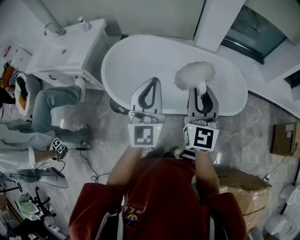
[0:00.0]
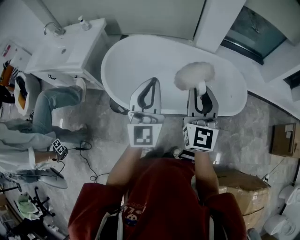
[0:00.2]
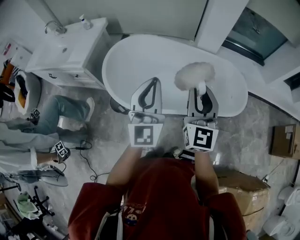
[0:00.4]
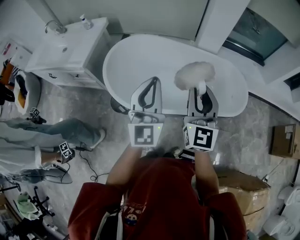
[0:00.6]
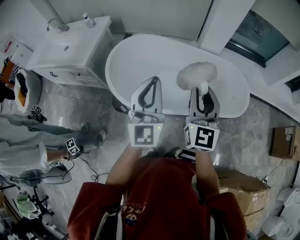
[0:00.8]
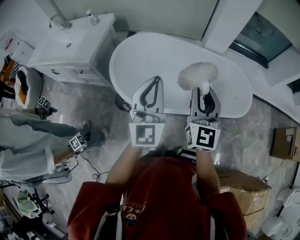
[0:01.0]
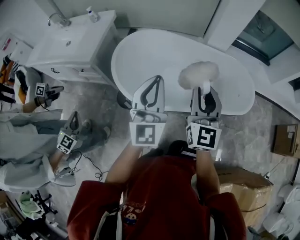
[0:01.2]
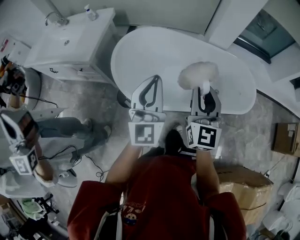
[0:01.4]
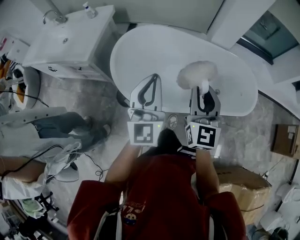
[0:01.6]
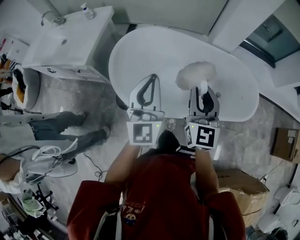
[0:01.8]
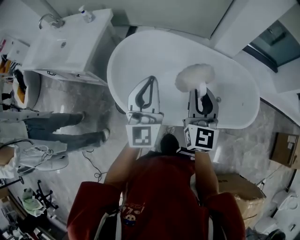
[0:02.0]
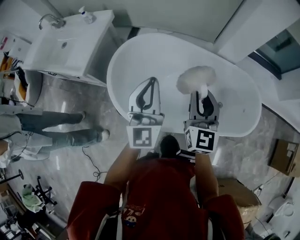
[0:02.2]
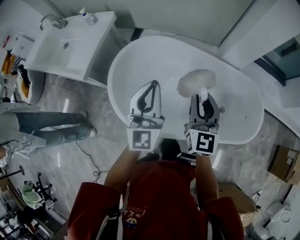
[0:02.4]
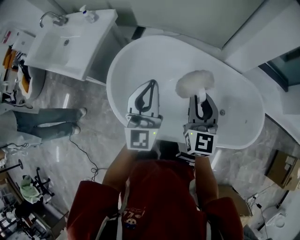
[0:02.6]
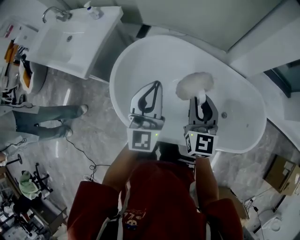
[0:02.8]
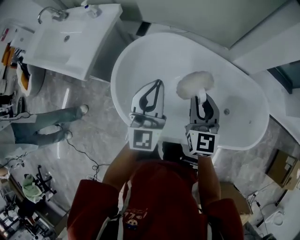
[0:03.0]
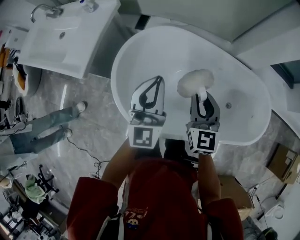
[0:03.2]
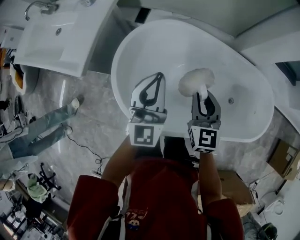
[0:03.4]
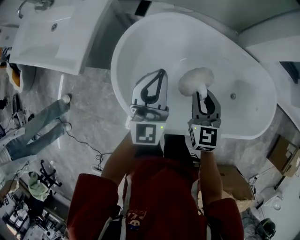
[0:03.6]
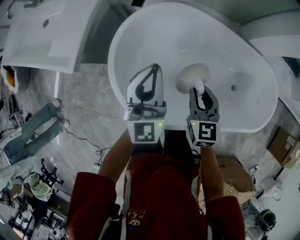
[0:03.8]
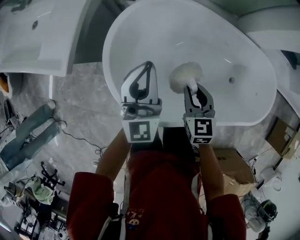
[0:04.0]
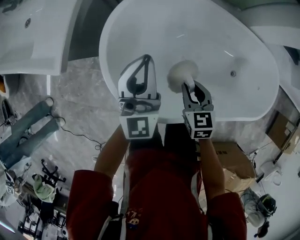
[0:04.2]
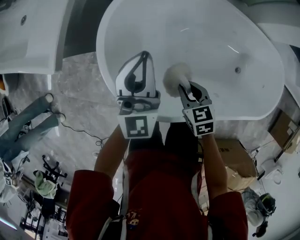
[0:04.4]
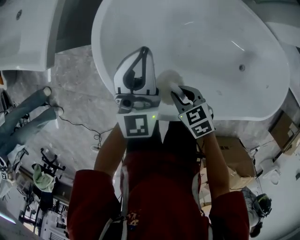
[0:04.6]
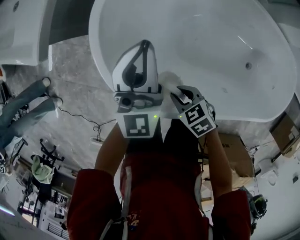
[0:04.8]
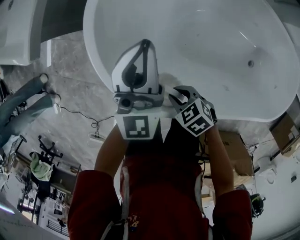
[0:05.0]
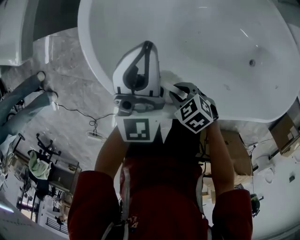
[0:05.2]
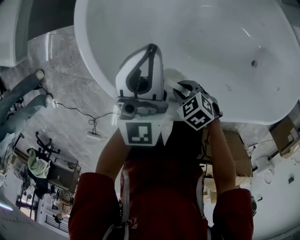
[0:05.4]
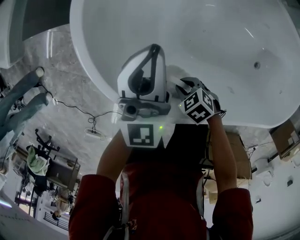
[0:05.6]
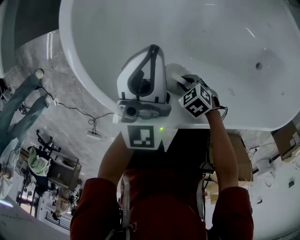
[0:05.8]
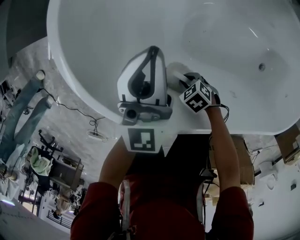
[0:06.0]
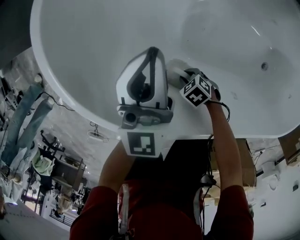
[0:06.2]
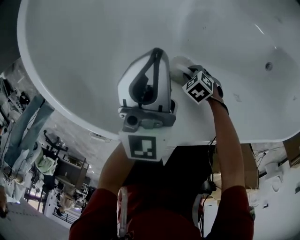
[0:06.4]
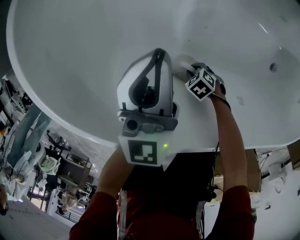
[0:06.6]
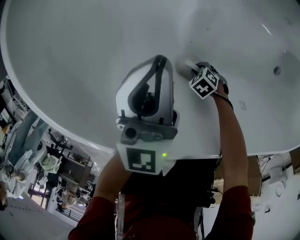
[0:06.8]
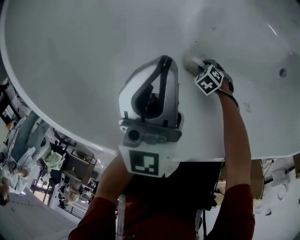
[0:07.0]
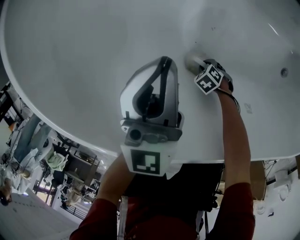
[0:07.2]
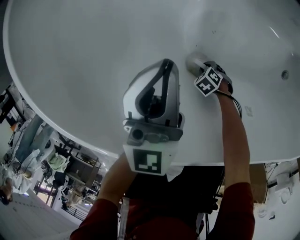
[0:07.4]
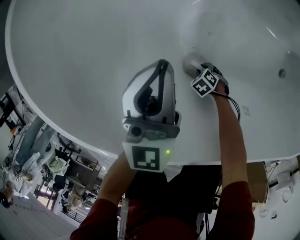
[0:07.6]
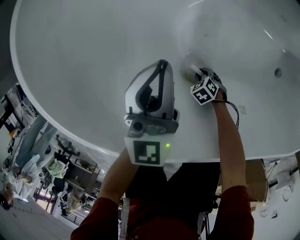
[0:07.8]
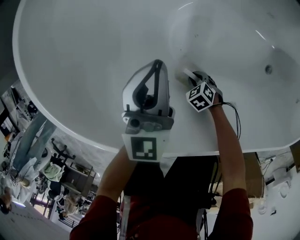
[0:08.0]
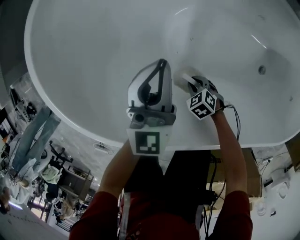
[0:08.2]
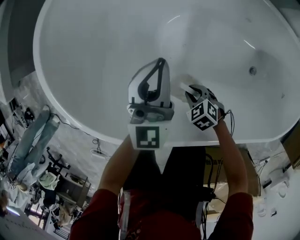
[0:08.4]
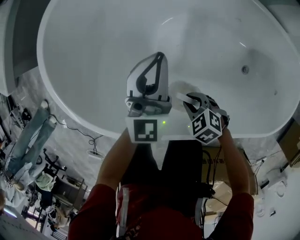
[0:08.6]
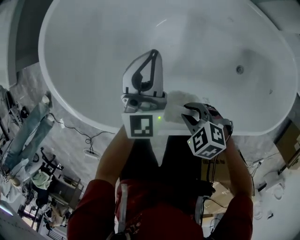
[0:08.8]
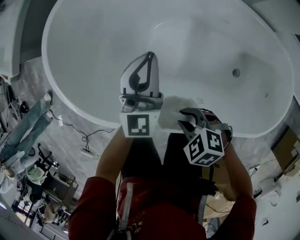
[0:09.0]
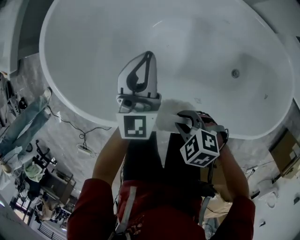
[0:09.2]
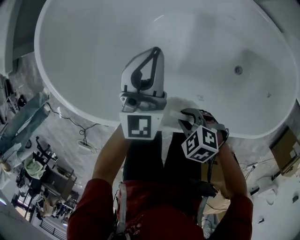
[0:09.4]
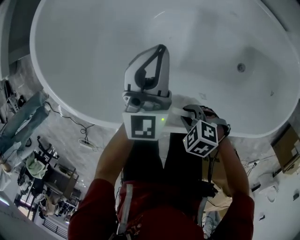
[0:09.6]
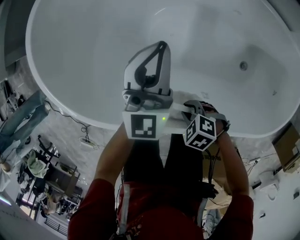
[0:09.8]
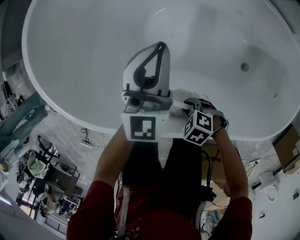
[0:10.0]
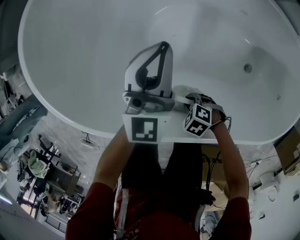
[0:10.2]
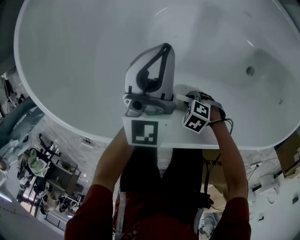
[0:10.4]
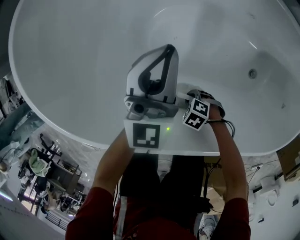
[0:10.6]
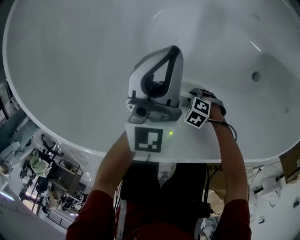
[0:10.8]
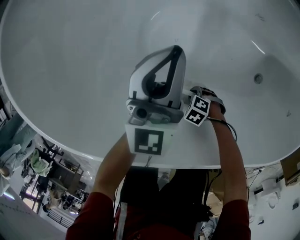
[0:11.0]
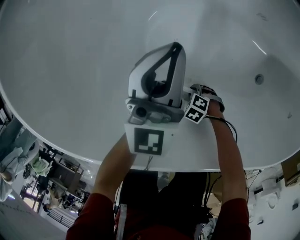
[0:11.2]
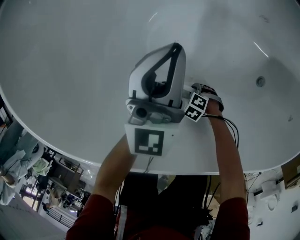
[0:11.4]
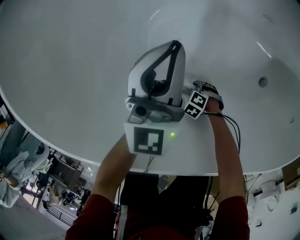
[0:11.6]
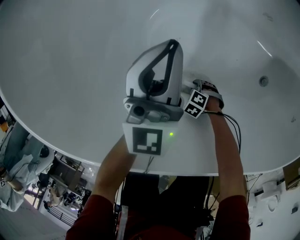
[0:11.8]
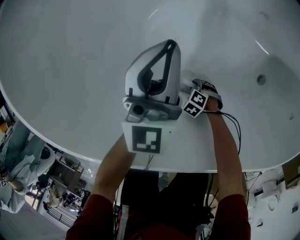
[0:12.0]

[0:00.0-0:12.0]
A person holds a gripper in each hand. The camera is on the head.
0:00.0 to 0:01.6: The left gripper is displaced to the left by approximately 10 cm, while the right gripper travels to the left, downward and forward by roughly 10 cm.
0:01.6 to 0:03.0: Both grippers move forward, some 25 cm.
0:03.0 to 0:04.4: The right gripper shifts some 30 cm downward and to the left, and angles its fingers downward, by some 40 degrees; the left gripper shifts some 20 cm downward and to the left.
0:04.4 to 0:06.0: The right gripper is displaced downward by roughly 30 cm, and changes its angle by approximately 40 degrees. Meanwhile the left gripper heads downward, covering approximately 15 cm.
0:06.0 to 0:07.6: The left gripper moves about 15 cm; the right gripper goes some 20 cm downward.
0:07.6 to 0:09.0: The right gripper is displaced upward by approximately 40 cm, and swivels about 30 degrees, while the left gripper shifts approximately 10 cm upward.
0:09.0 to 0:10.4: The right gripper shifts some 25 cm downward, while the left gripper travels downward by about 10 cm.
0:10.4 to 0:12.0: The left gripper travels downward by about 10 cm; the right gripper goes approximately 20 cm downward.

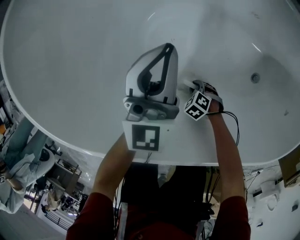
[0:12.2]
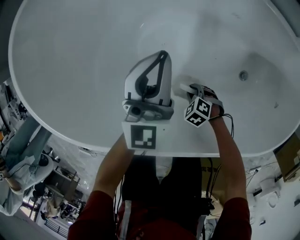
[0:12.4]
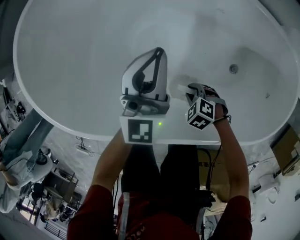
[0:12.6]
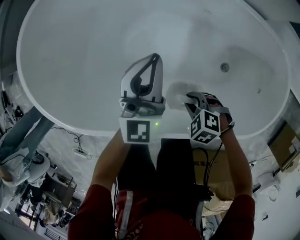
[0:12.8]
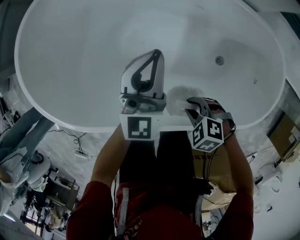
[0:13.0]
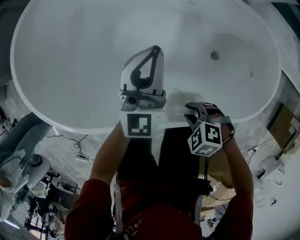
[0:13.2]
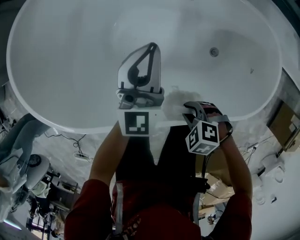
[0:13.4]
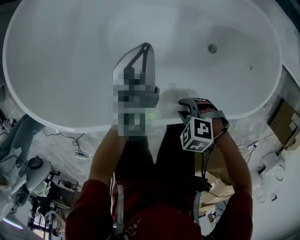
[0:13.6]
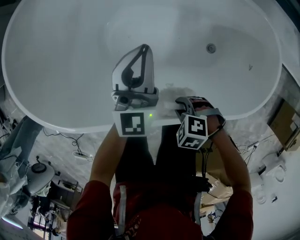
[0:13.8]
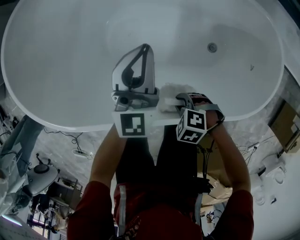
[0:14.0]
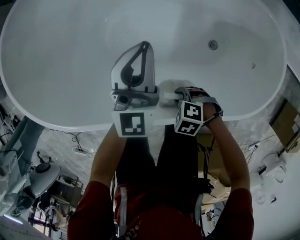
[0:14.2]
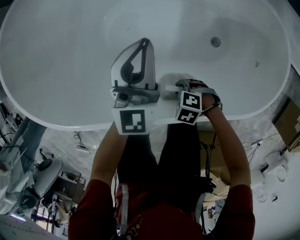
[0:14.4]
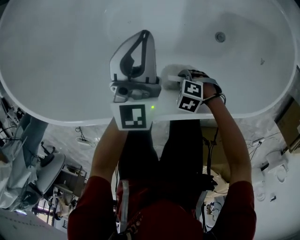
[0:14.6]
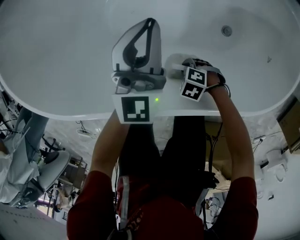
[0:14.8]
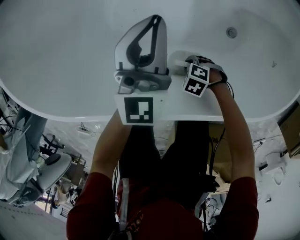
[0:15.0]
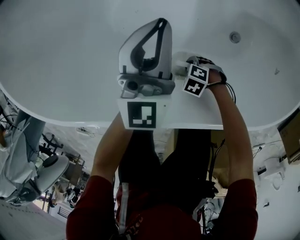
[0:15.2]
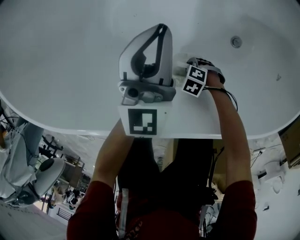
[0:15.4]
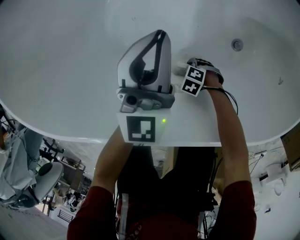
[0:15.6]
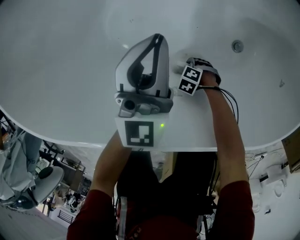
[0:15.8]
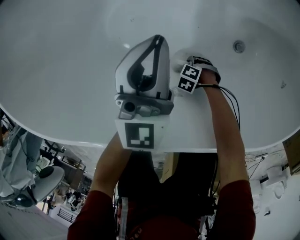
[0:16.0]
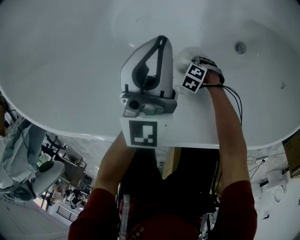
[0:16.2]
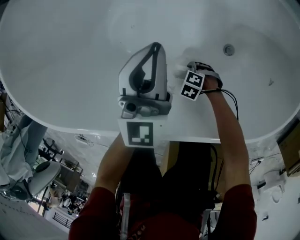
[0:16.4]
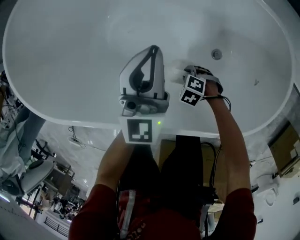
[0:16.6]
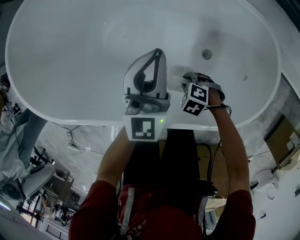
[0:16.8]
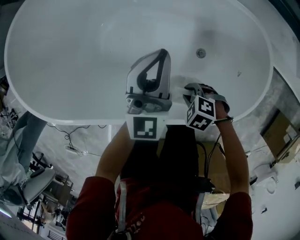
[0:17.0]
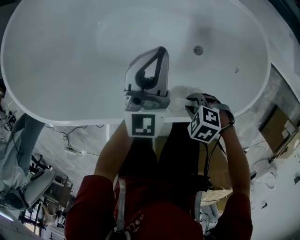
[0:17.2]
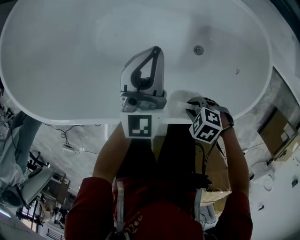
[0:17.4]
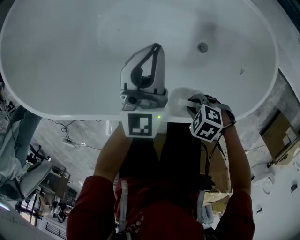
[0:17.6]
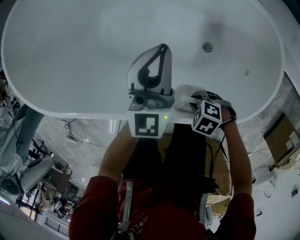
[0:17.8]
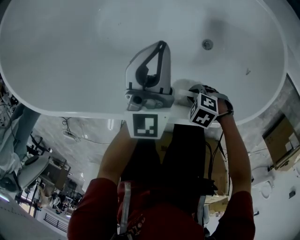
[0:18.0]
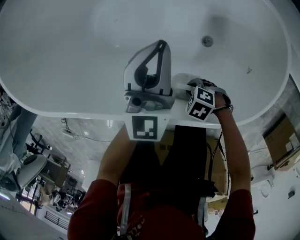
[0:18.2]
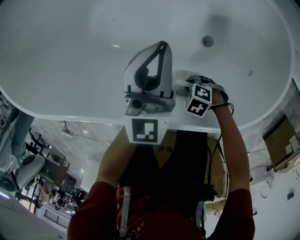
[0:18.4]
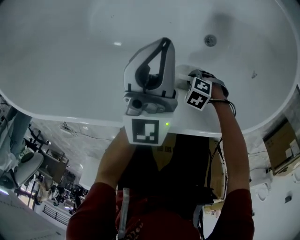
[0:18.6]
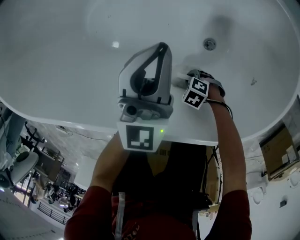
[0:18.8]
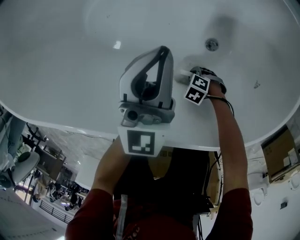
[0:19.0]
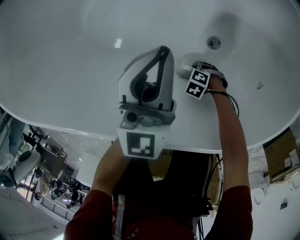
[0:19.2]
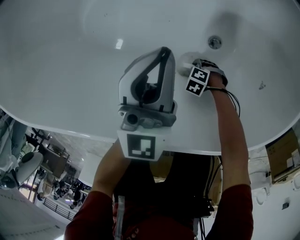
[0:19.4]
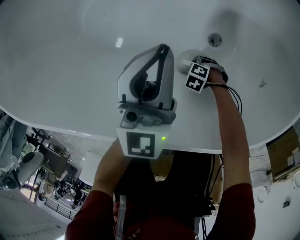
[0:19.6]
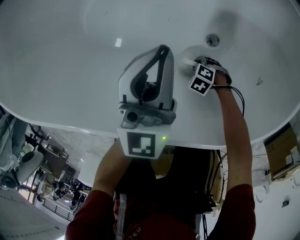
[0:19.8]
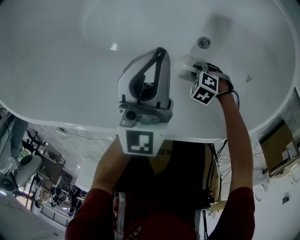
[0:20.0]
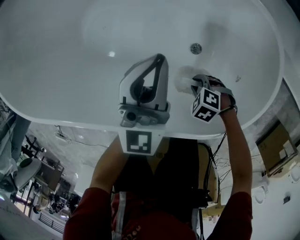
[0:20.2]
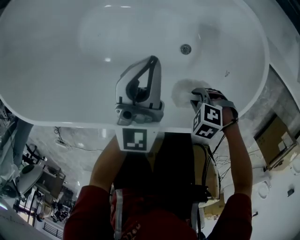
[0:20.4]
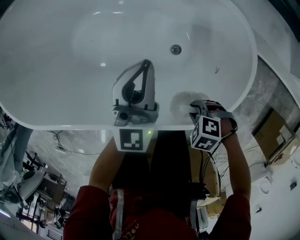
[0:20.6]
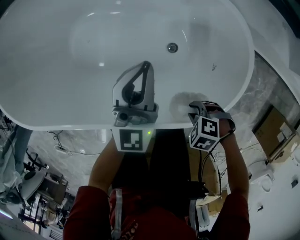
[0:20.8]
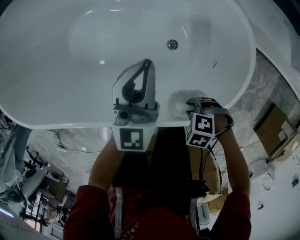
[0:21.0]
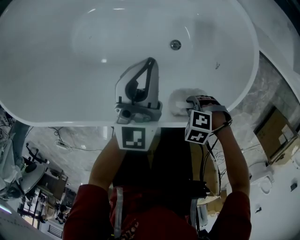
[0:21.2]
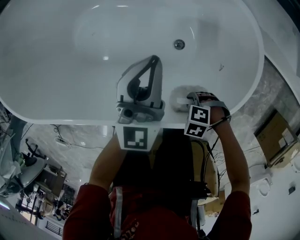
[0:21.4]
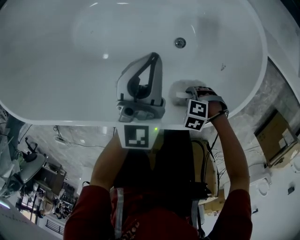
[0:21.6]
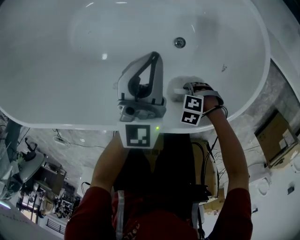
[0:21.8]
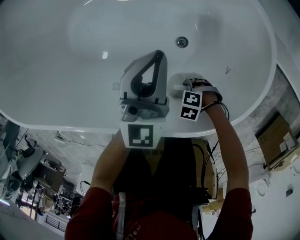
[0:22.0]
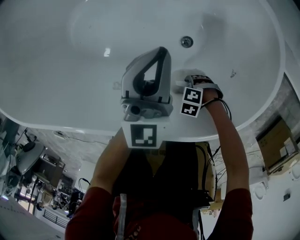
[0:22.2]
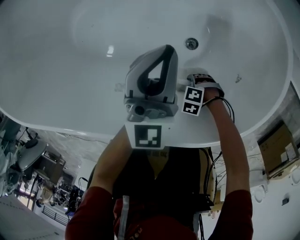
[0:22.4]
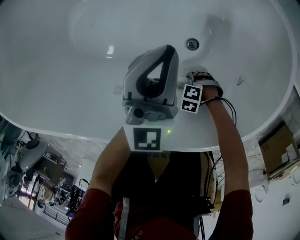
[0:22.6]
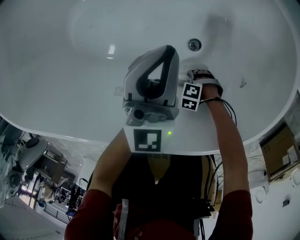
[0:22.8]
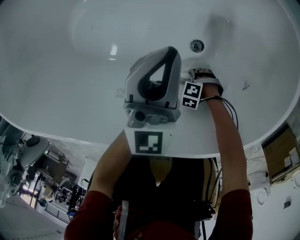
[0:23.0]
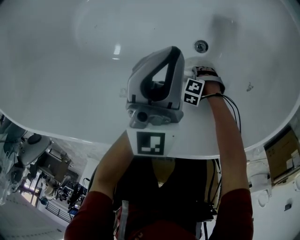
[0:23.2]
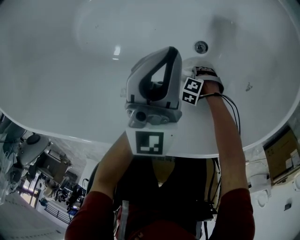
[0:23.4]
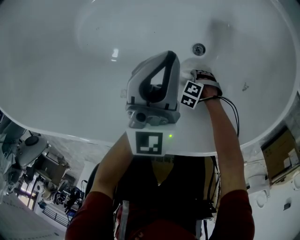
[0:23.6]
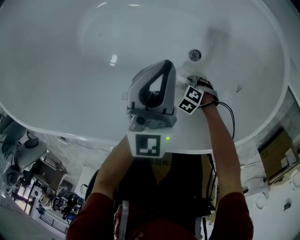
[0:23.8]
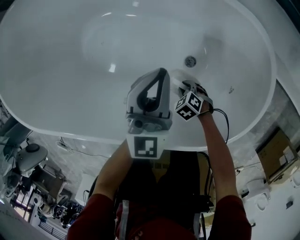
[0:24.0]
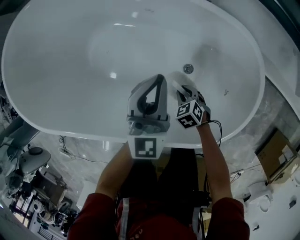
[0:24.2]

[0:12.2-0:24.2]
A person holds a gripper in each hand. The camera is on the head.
0:12.2 to 0:13.8: The right gripper travels upward by roughly 30 cm; the left gripper changes place by some 20 cm.
0:13.8 to 0:15.2: The right gripper heads downward, covering some 20 cm.
0:15.2 to 0:16.6: The right gripper reaches roughly 15 cm downward, then returns, while the left gripper shifts by approximately 10 cm.
0:16.6 to 0:18.2: The right gripper reaches roughly 20 cm upward, then returns. Meanwhile the left gripper moves some 5 cm upward and comes back.
0:18.2 to 0:19.8: The right gripper is displaced downward by some 20 cm. Meanwhile the left gripper is displaced downward by some 5 cm.
0:19.8 to 0:21.2: The right gripper heads upward, covering roughly 25 cm; the left gripper travels upward by some 10 cm.
0:21.2 to 0:22.6: The right gripper goes some 25 cm downward. Meanwhile the left gripper travels downward by about 10 cm.
0:22.6 to 0:24.2: The left gripper travels upward by approximately 10 cm. The right gripper goes approximately 20 cm upward, and rolls clockwise, seen from behind, by approximately 40 degrees.
